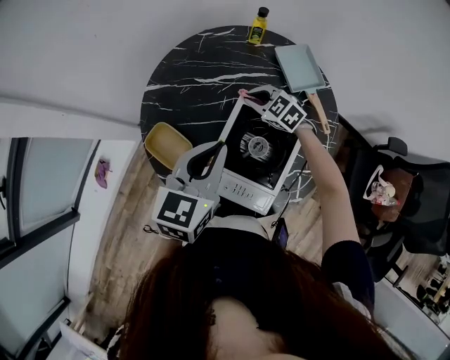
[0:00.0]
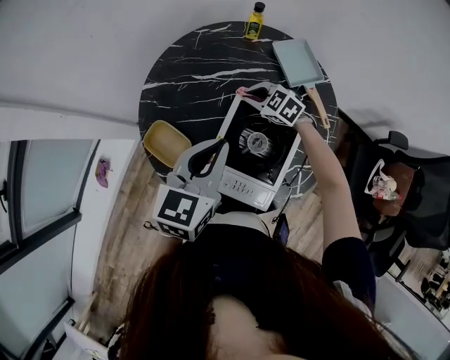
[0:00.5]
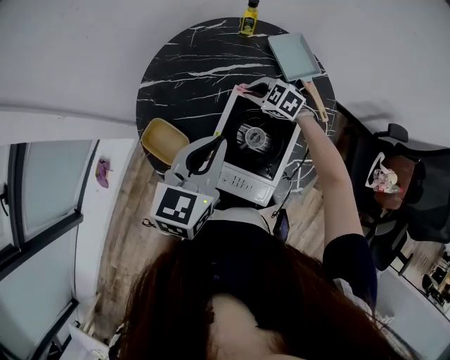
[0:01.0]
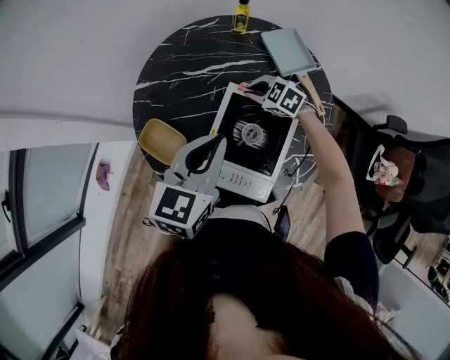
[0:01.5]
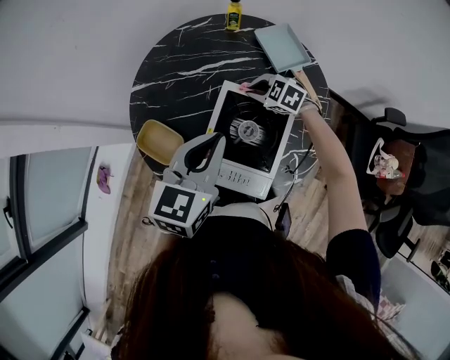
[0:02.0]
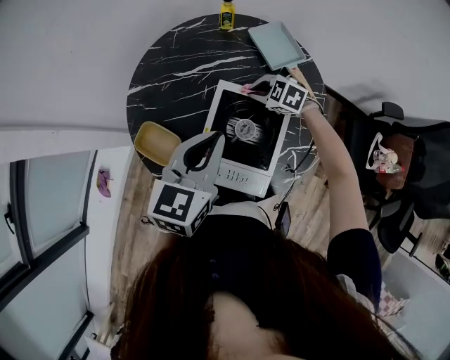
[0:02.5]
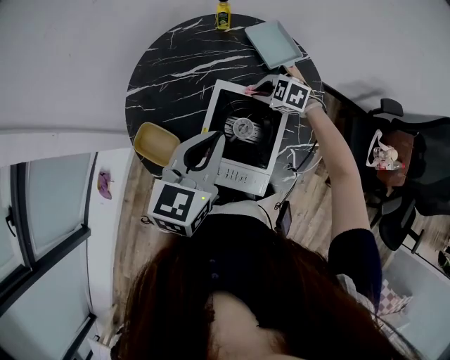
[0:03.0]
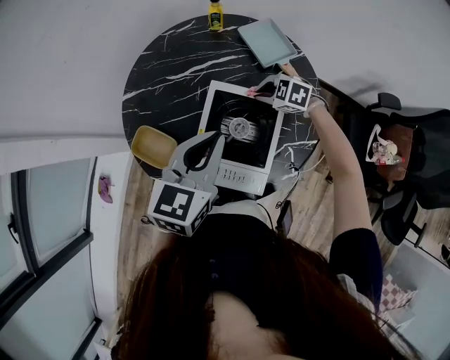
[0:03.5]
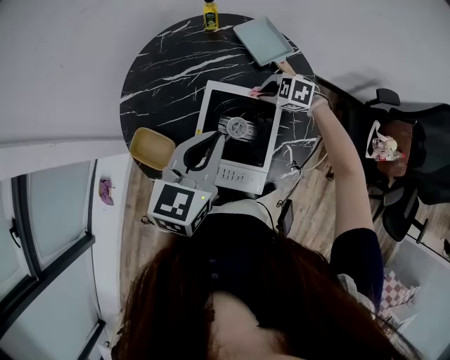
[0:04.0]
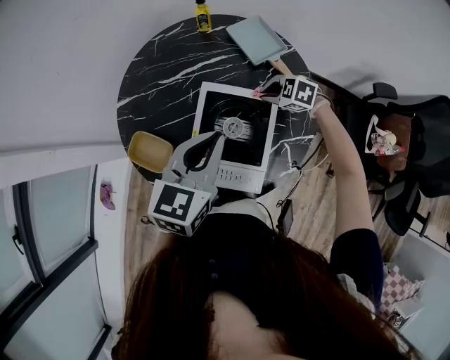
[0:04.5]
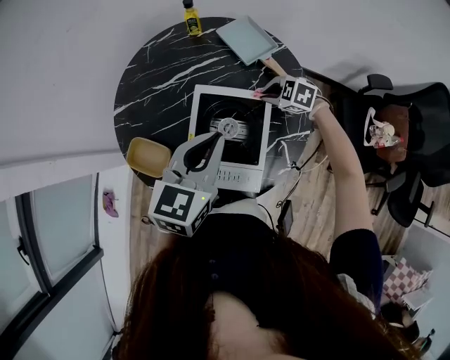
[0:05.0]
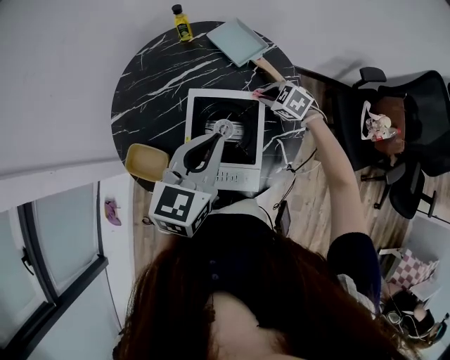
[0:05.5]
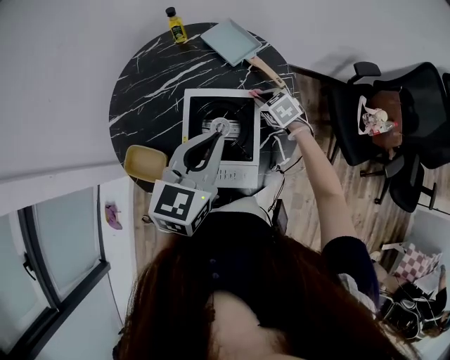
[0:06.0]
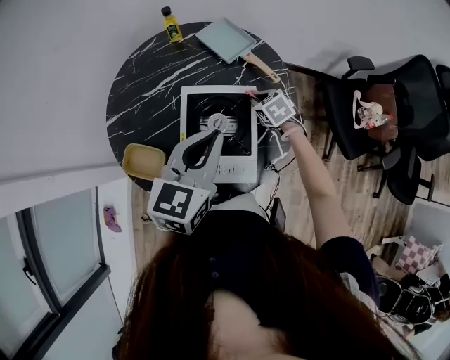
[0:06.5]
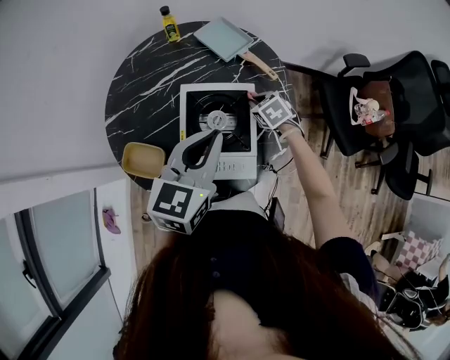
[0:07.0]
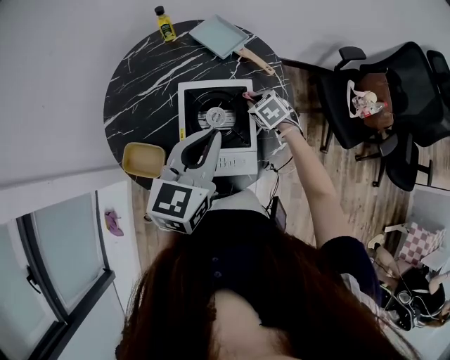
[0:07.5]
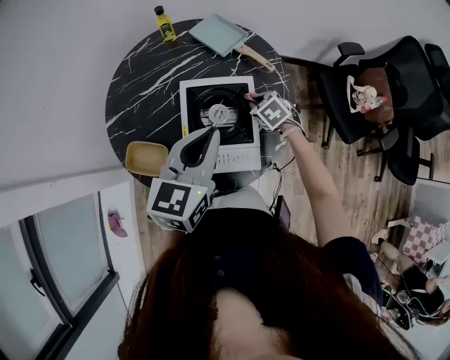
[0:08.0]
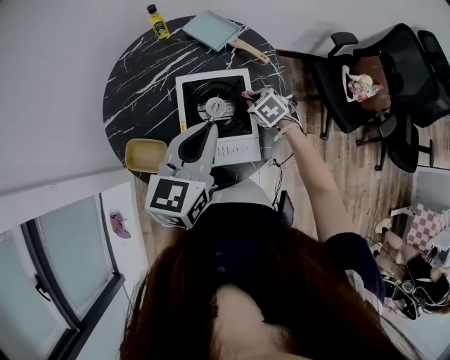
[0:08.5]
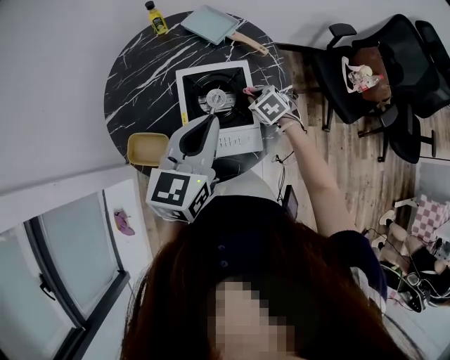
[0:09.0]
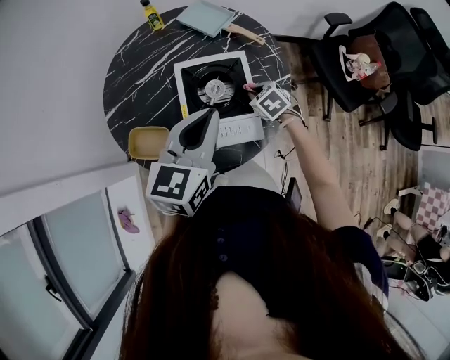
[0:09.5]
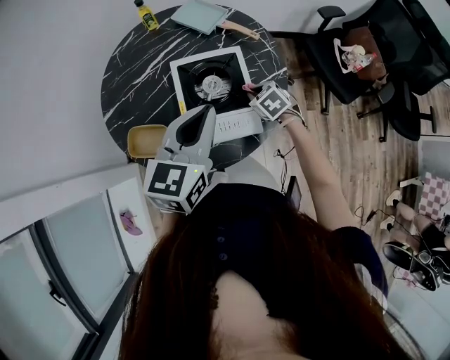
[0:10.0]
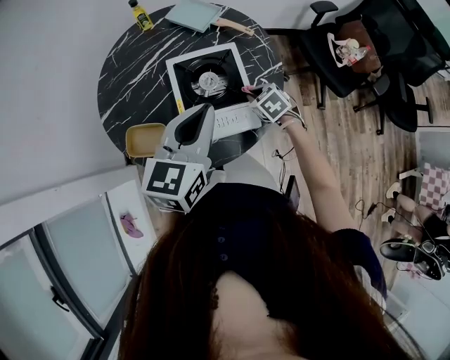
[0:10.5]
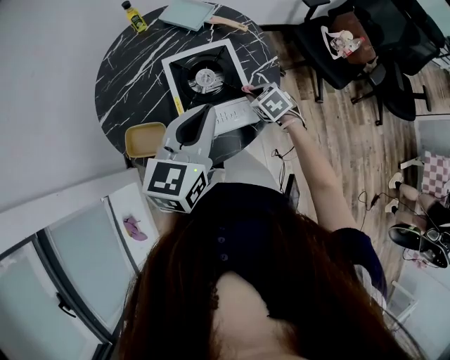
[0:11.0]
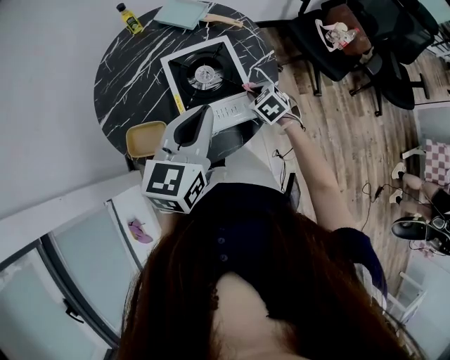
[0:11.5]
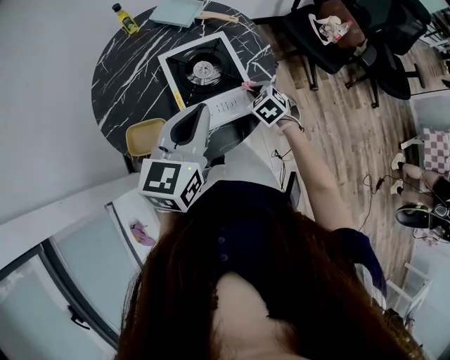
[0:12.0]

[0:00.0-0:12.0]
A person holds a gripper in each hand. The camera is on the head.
0:00.0 to 0:02.0: The right gripper changes place by roughly 5 cm.
0:02.0 to 0:04.0: The right gripper heads to the right and backward, covering some 10 cm.
0:04.0 to 0:06.0: The right gripper ends up approximately 10 cm from where it was, and rotates about 50 degrees. The left gripper moves approximately 5 cm.
0:06.0 to 0:08.0: The right gripper moves backward, approximately 5 cm.
0:08.0 to 0:10.0: The right gripper is displaced backward by roughly 10 cm. Meanwhile the left gripper shifts roughly 5 cm backward.
0:10.0 to 0:12.0: Both grippers move backward, approximately 5 cm.

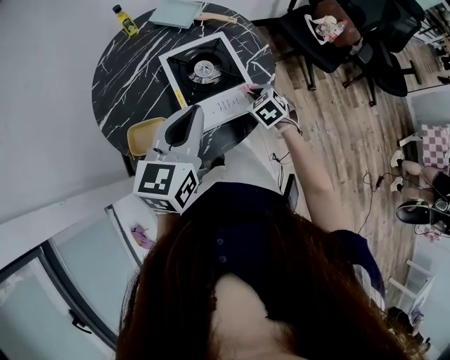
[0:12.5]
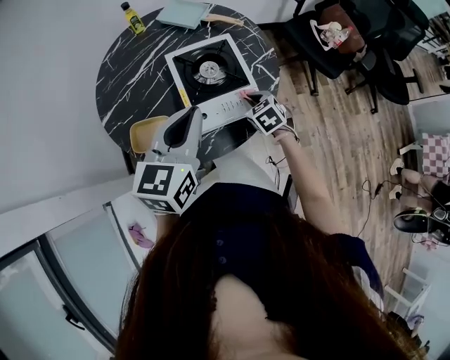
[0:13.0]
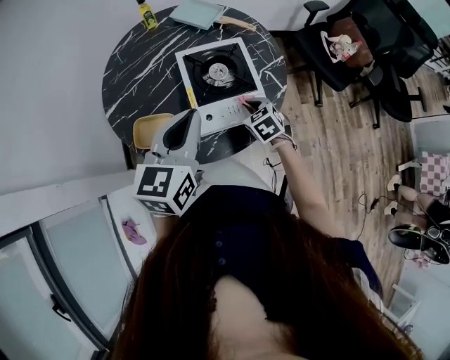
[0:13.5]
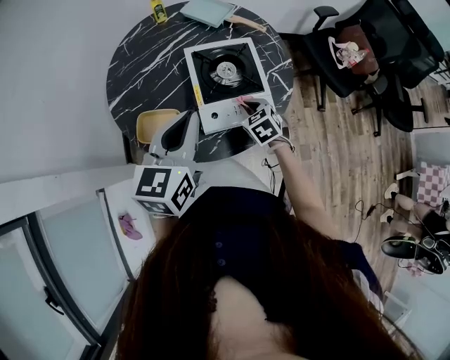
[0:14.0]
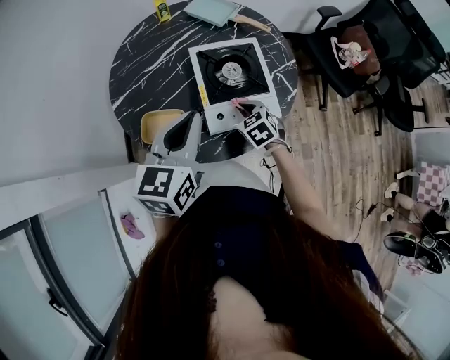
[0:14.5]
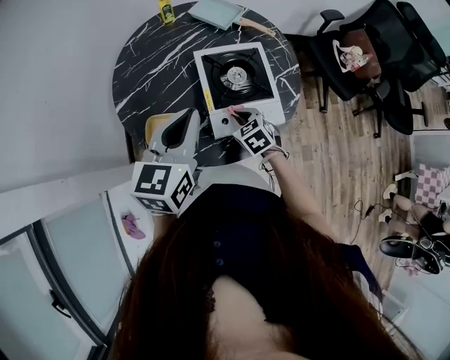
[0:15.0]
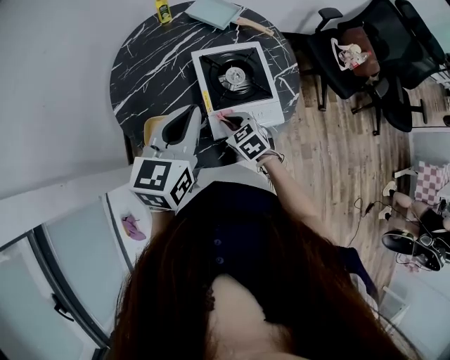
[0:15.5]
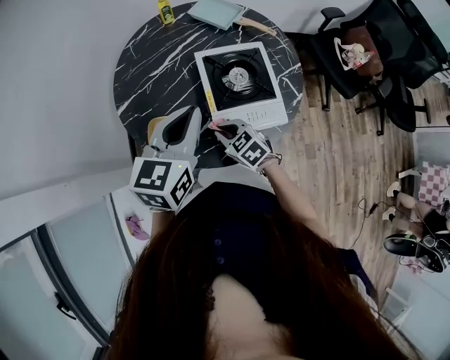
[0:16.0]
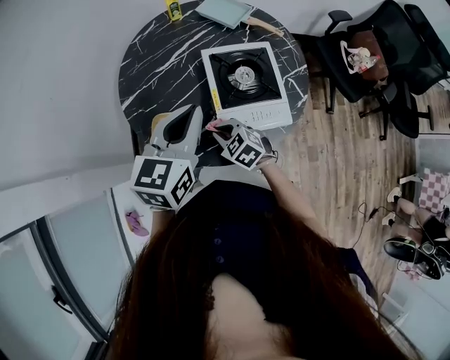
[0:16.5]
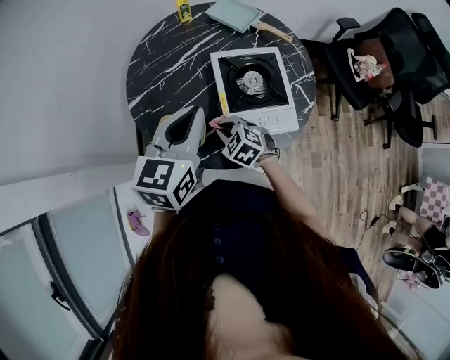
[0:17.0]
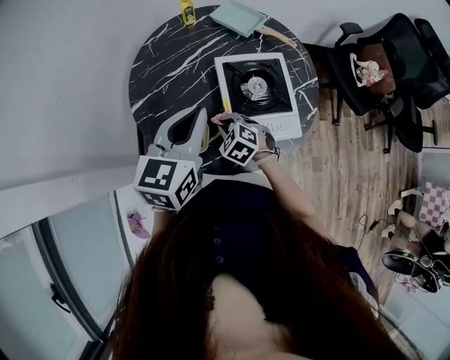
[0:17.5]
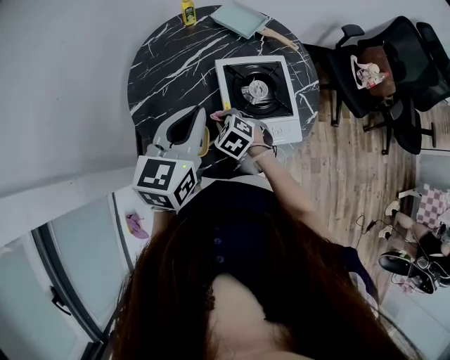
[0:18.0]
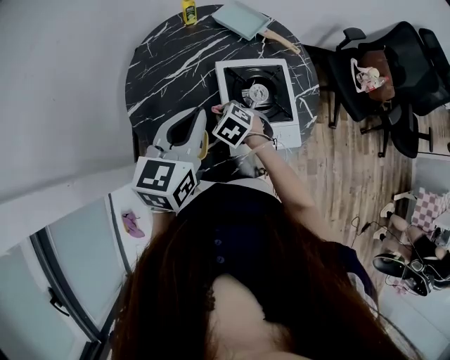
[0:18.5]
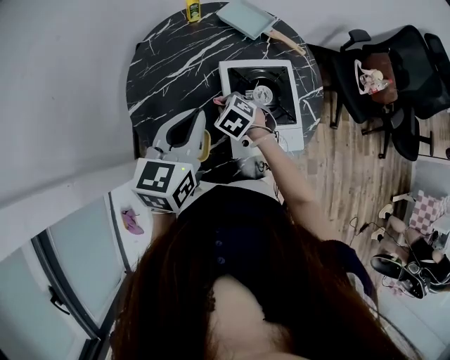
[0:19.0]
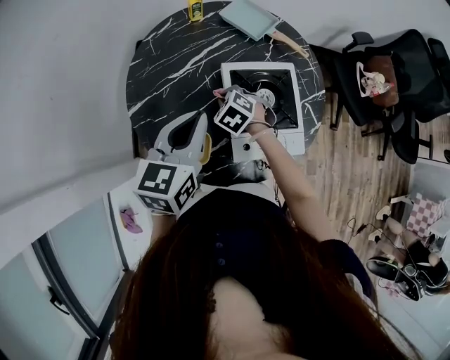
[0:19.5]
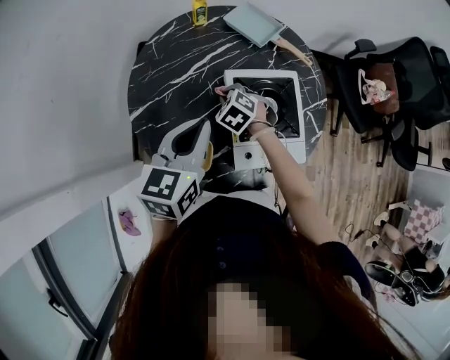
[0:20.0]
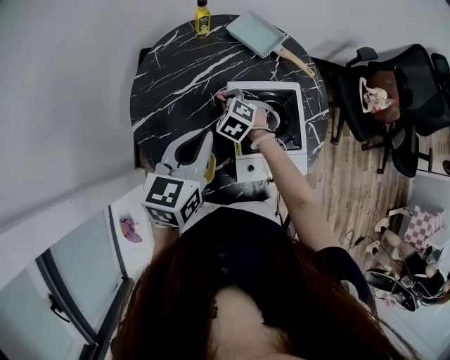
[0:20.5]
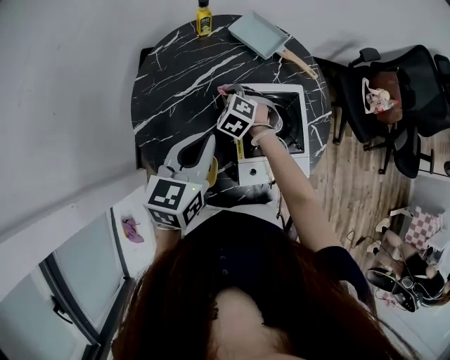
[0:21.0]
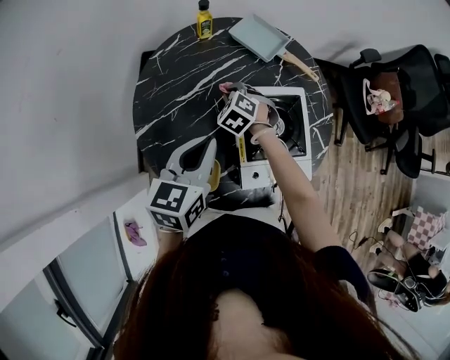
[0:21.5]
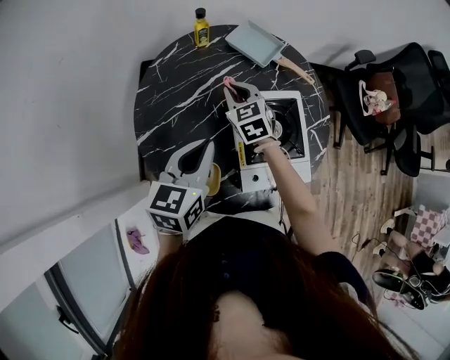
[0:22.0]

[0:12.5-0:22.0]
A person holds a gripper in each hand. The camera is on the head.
0:12.5 to 0:14.5: The left gripper travels to the left by roughly 10 cm, while the right gripper goes some 10 cm to the left.
0:14.5 to 0:16.5: The right gripper travels to the left by roughly 15 cm, and rotates roughly 20 degrees.
0:16.5 to 0:18.0: The right gripper is displaced forward by about 10 cm.
0:18.0 to 0:20.0: The left gripper ends up approximately 5 cm from where it was, while the right gripper goes roughly 15 cm forward.
0:20.0 to 0:22.0: The right gripper moves upward and forward, roughly 10 cm, and changes its angle by roughly 40 degrees.

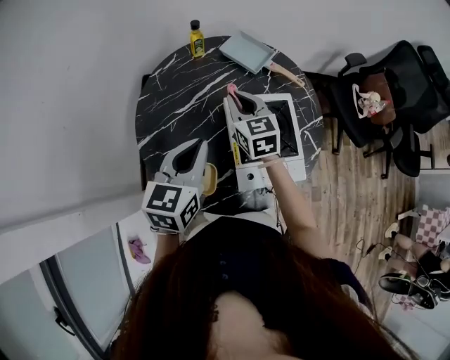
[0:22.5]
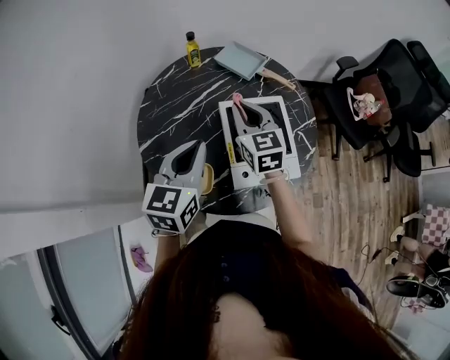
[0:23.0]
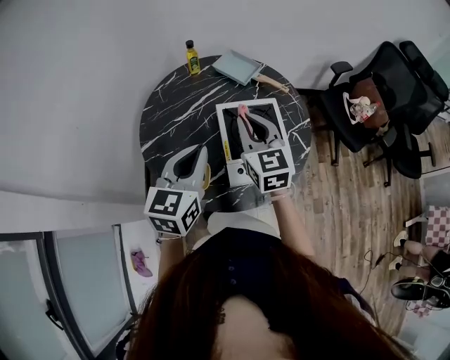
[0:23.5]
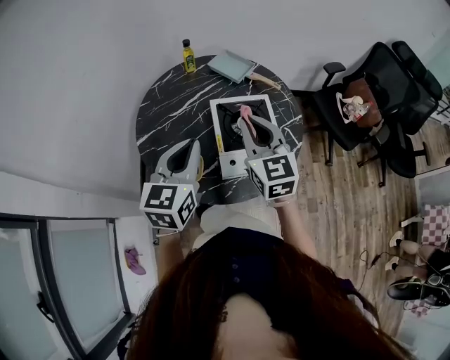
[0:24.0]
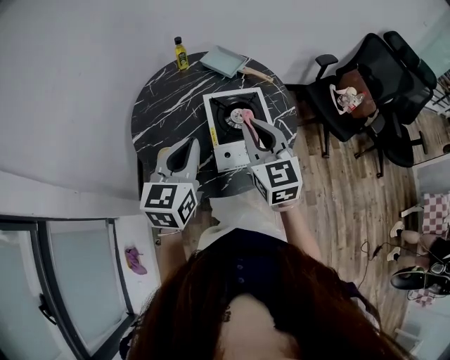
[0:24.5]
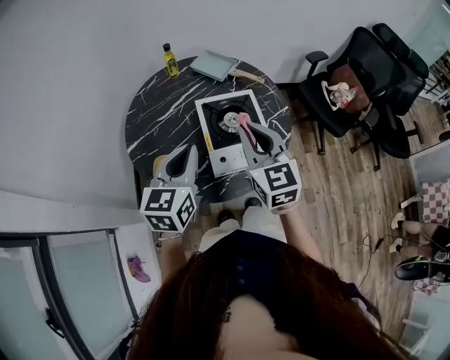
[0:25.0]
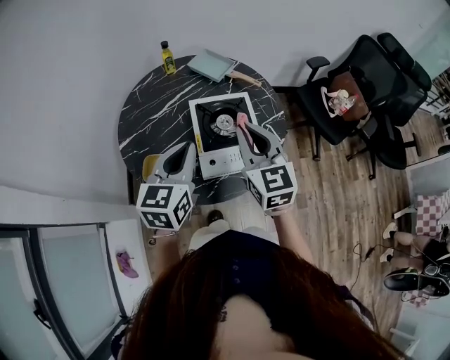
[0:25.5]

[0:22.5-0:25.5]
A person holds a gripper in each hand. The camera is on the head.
0:22.5 to 0:24.0: The left gripper travels backward and upward by approximately 10 cm. Meanwhile the right gripper goes approximately 25 cm backward, upward and to the right.
0:24.0 to 0:25.5: The two grippers go about 5 cm to the right.

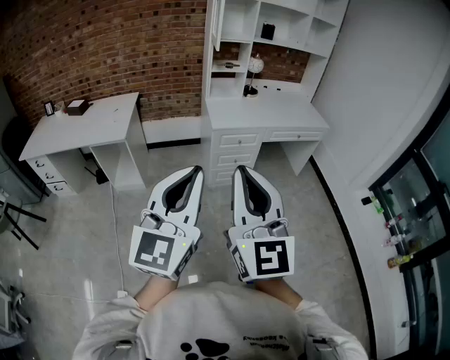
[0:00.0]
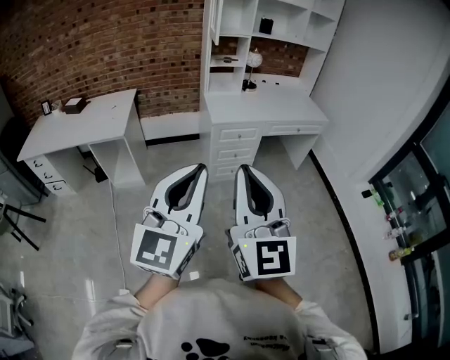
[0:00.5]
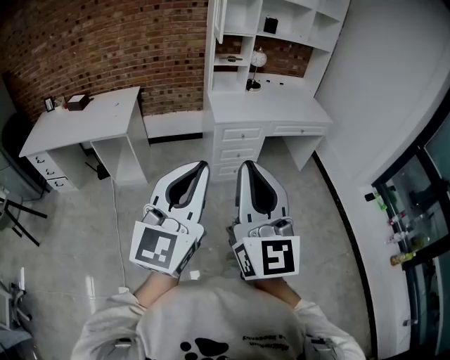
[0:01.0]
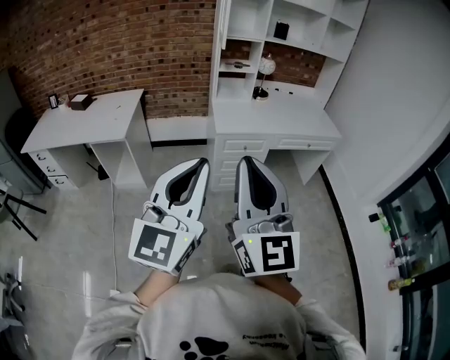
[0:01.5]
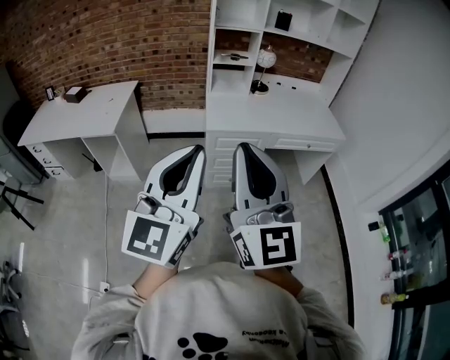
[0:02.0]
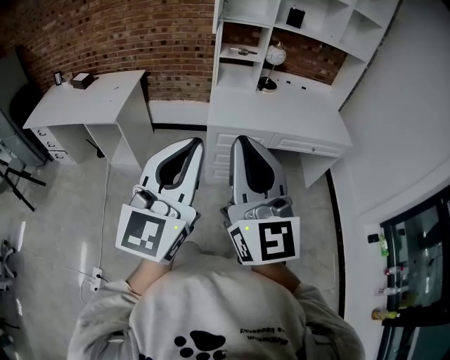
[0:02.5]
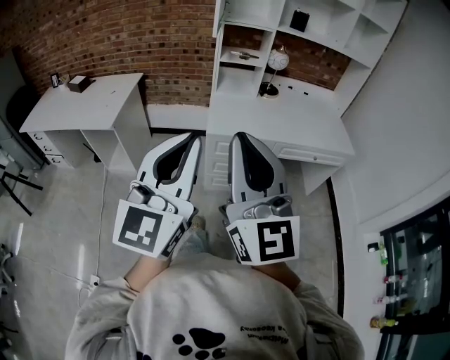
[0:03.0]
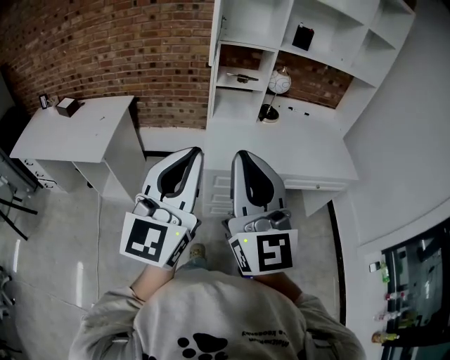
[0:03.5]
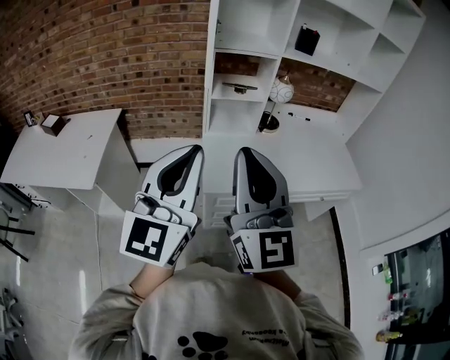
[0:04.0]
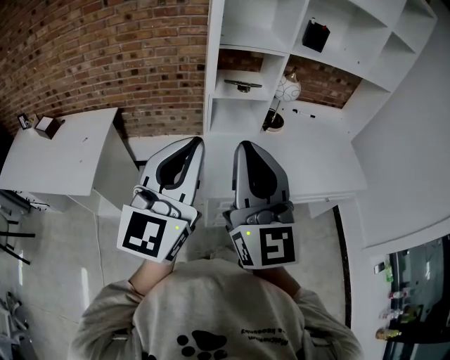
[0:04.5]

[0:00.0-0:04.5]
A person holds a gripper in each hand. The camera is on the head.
0:00.0 to 0:02.0: The two grippers go about 25 cm forward and to the right.
0:02.0 to 0:04.5: The two grippers travel together, forward, roughly 50 cm.
